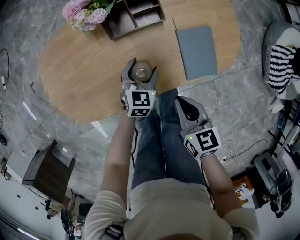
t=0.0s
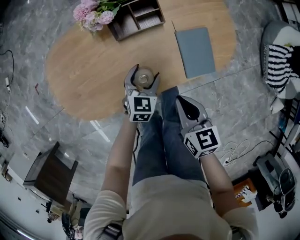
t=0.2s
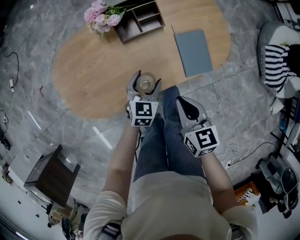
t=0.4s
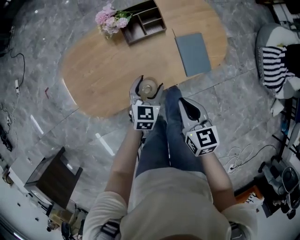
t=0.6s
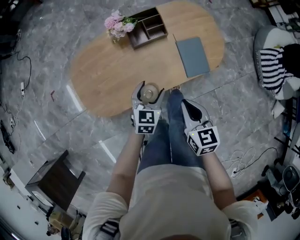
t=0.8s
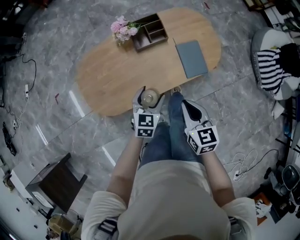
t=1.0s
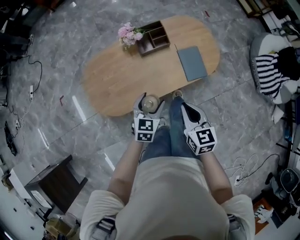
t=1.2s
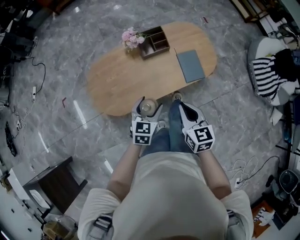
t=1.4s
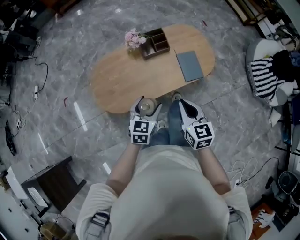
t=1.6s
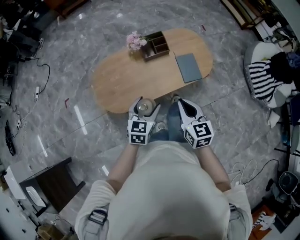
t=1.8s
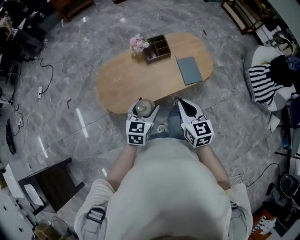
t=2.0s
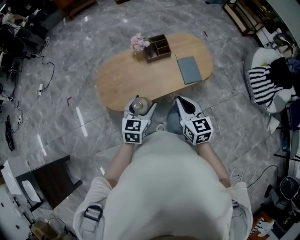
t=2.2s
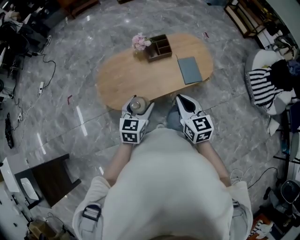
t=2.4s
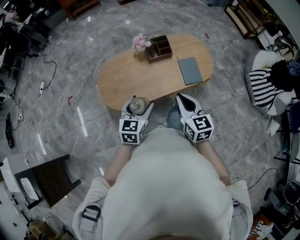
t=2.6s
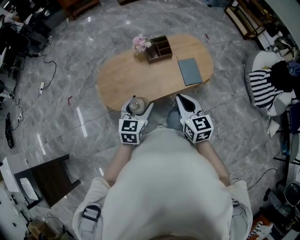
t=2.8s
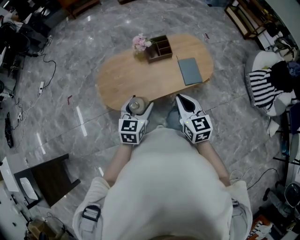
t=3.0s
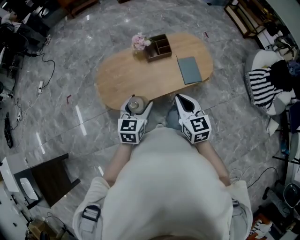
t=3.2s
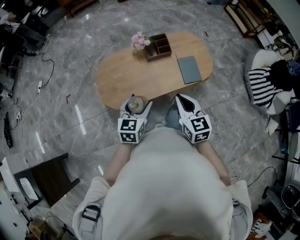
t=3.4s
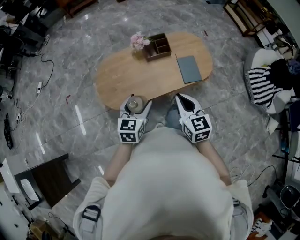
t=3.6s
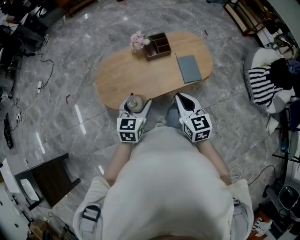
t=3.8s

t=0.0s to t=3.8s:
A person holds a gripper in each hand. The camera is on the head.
t=0.0s to t=1.2s: Both grippers move upward and backward, about 25 cm.
t=1.2s to t=2.6s: The grippers both shift upward and backward by about 15 cm.
t=2.6s to t=3.8s: The grippers stay close to where they were, moving slightly.

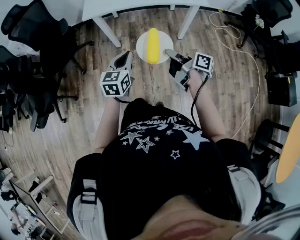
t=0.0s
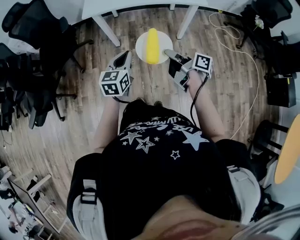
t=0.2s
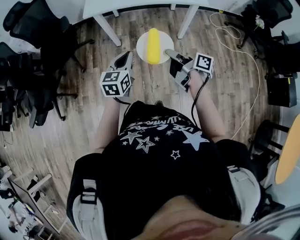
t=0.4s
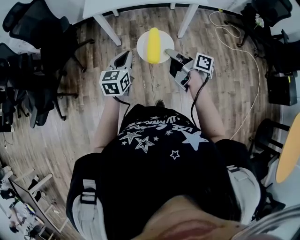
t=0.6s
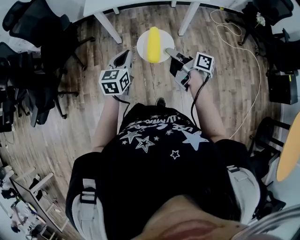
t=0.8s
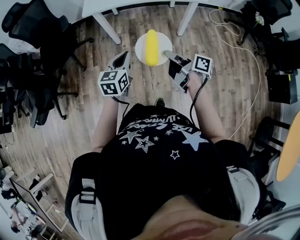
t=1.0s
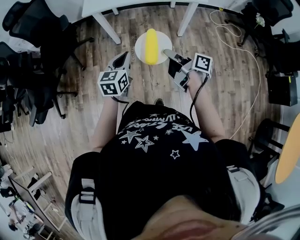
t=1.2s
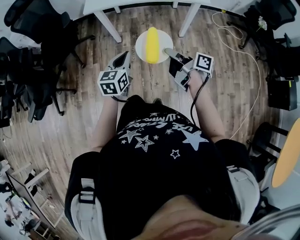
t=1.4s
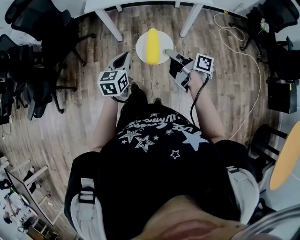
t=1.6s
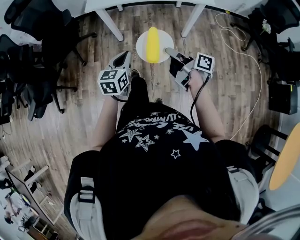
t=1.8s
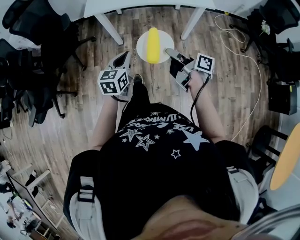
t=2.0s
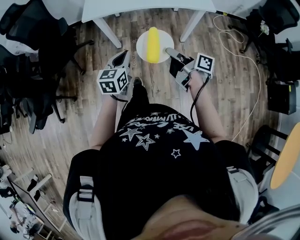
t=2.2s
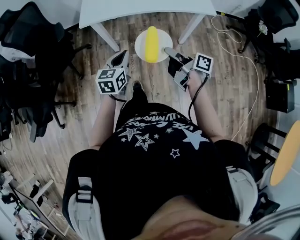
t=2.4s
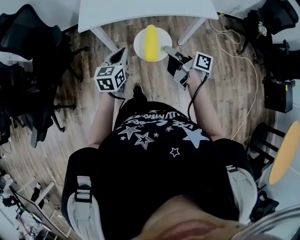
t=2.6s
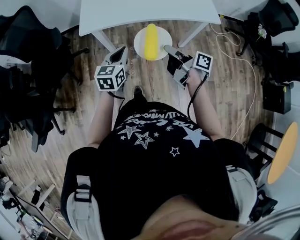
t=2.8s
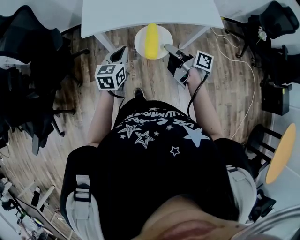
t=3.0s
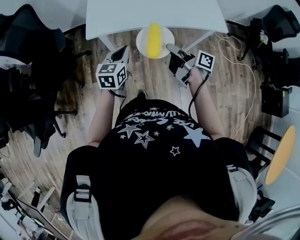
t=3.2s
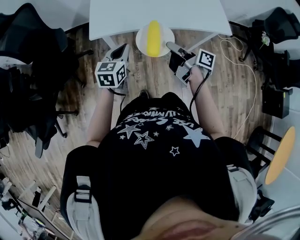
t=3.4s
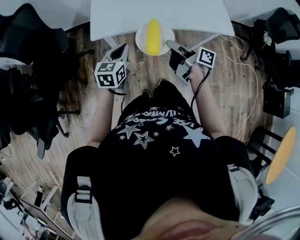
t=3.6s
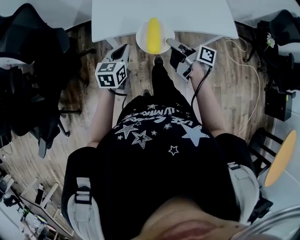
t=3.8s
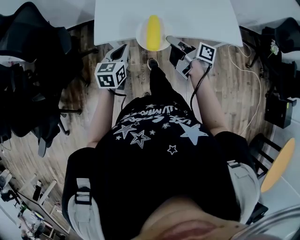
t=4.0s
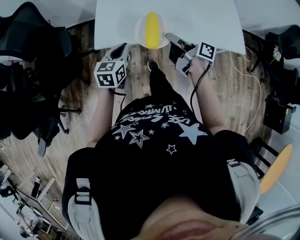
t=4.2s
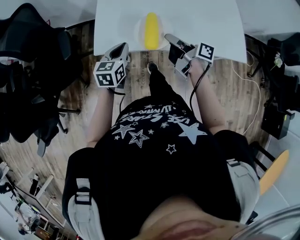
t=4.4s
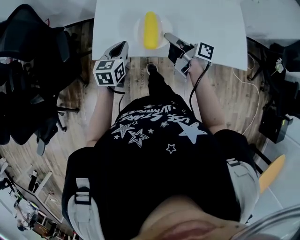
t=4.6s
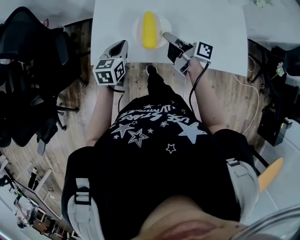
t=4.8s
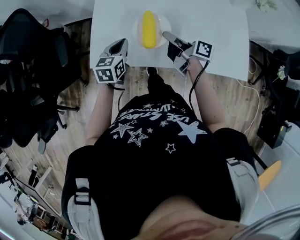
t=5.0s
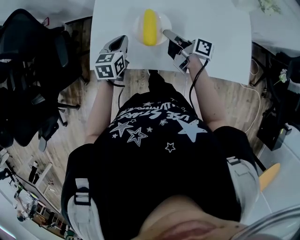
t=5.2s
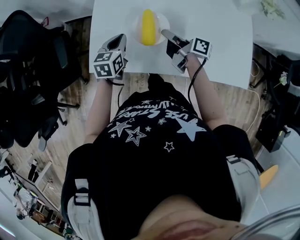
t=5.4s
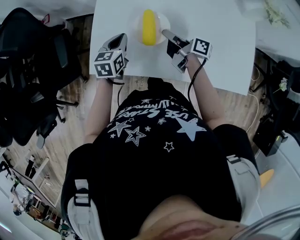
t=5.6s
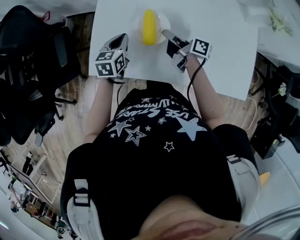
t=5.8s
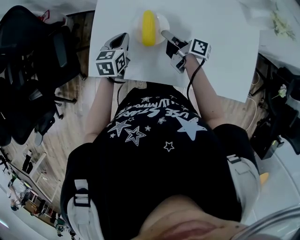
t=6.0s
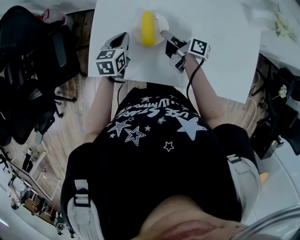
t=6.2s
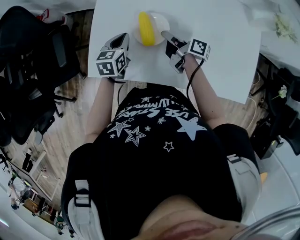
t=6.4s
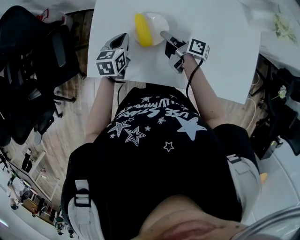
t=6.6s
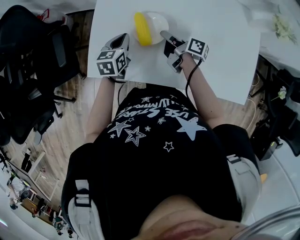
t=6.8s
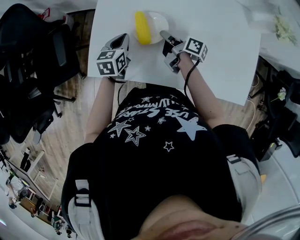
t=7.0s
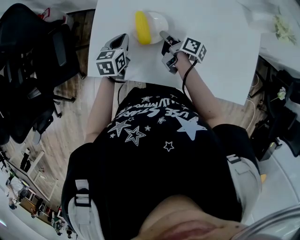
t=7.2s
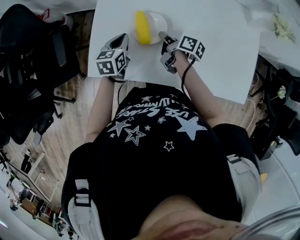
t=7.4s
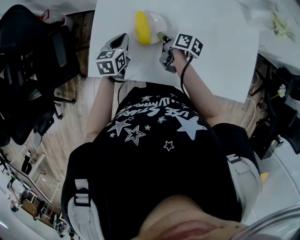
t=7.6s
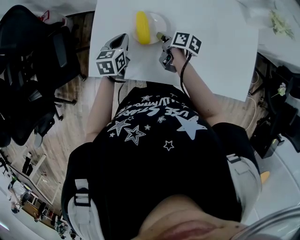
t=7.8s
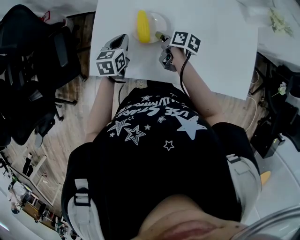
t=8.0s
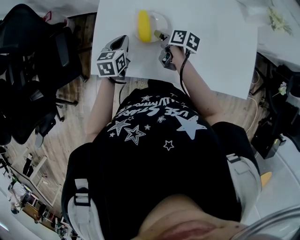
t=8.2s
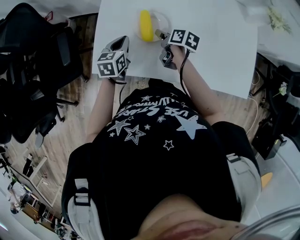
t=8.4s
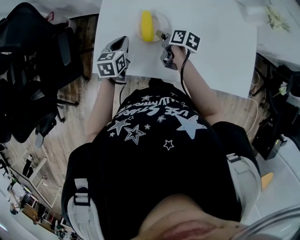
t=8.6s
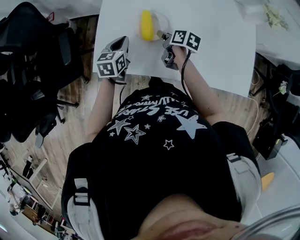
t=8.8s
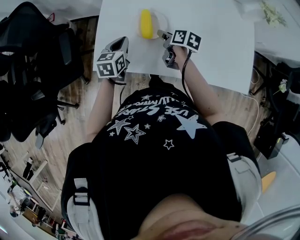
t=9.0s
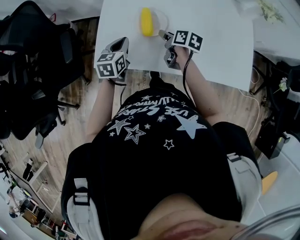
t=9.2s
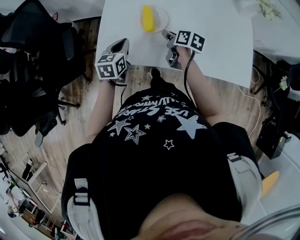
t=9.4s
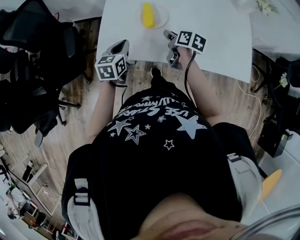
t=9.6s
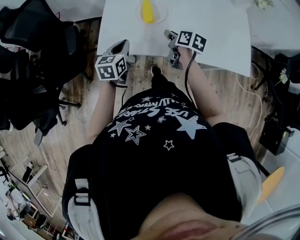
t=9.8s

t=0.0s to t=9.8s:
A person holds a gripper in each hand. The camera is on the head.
t=1.4s to t=2.8s: The left gripper ends up about 25 cm from where it was.
t=2.8s to t=4.2s: The left gripper moves about 25 cm.
t=4.2s to t=5.6s: The left gripper shifts by about 25 cm.
t=8.4s to t=9.8s: The left gripper changes place by about 15 cm.

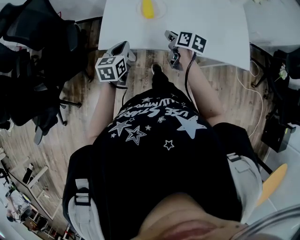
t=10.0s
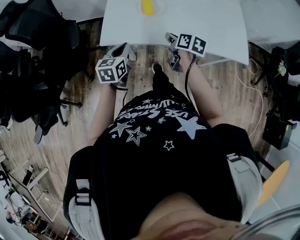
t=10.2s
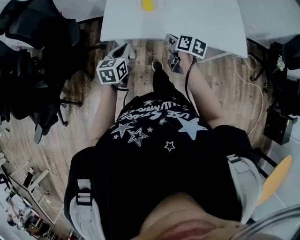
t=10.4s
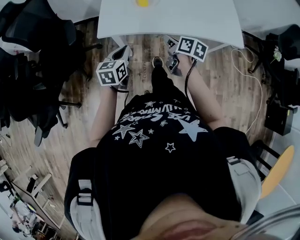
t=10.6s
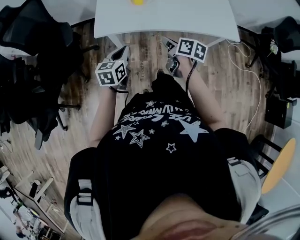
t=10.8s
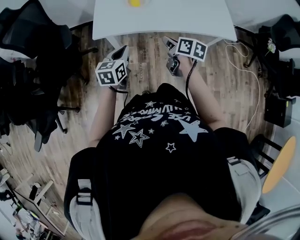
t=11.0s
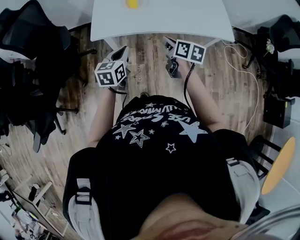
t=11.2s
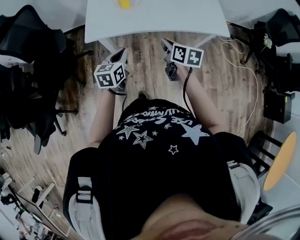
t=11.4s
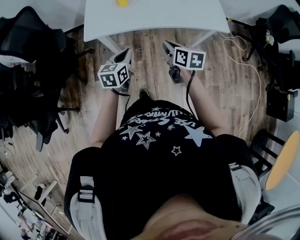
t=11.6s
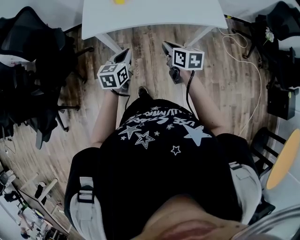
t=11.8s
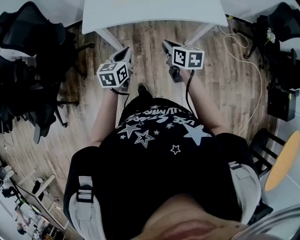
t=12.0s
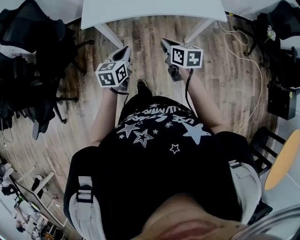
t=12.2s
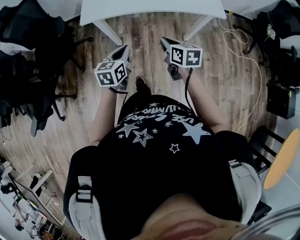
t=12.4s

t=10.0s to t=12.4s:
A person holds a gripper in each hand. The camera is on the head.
t=10.0s to t=11.2s: The left gripper ends up roughly 15 cm from where it was.
t=11.2s to t=12.4s: The left gripper shifts by about 15 cm.

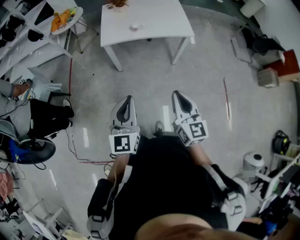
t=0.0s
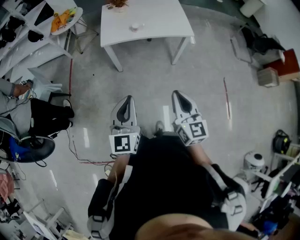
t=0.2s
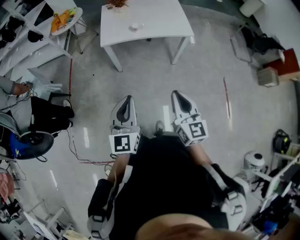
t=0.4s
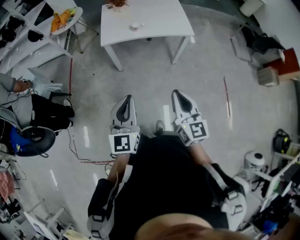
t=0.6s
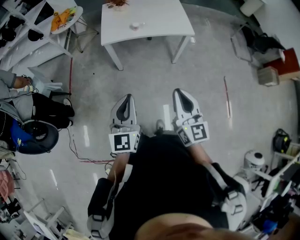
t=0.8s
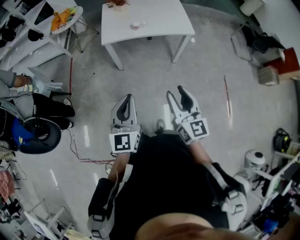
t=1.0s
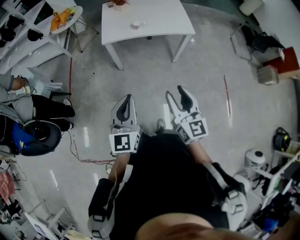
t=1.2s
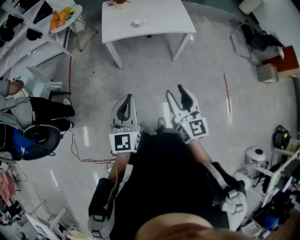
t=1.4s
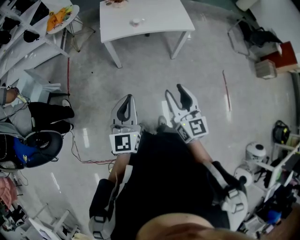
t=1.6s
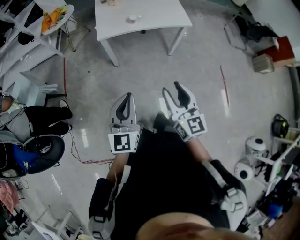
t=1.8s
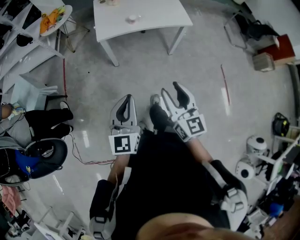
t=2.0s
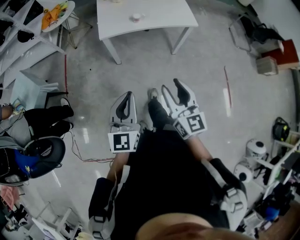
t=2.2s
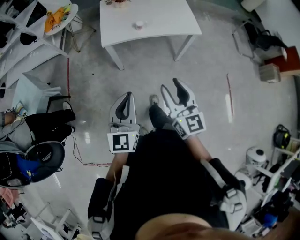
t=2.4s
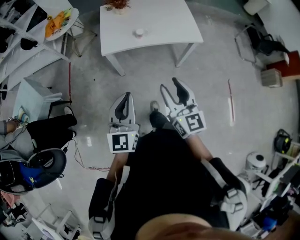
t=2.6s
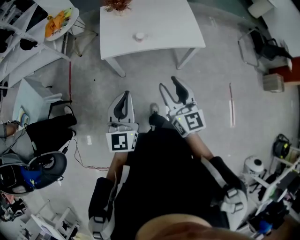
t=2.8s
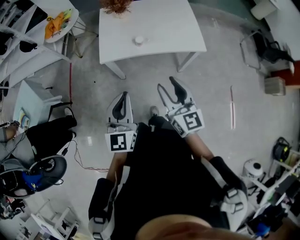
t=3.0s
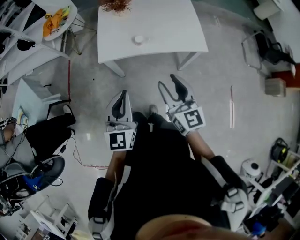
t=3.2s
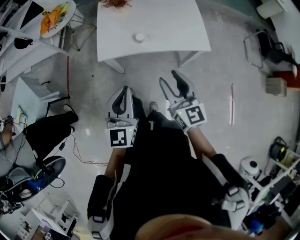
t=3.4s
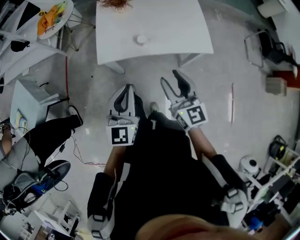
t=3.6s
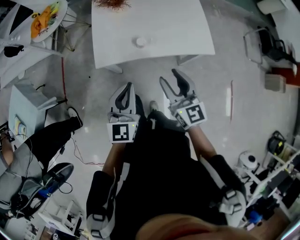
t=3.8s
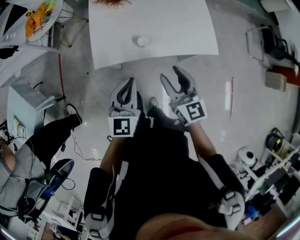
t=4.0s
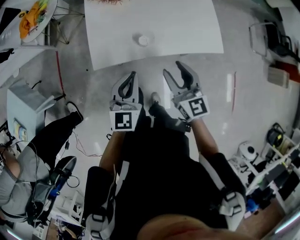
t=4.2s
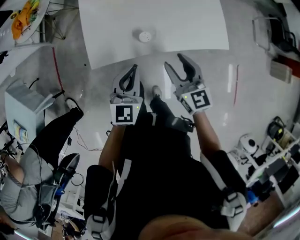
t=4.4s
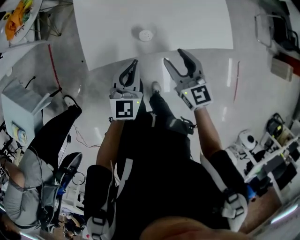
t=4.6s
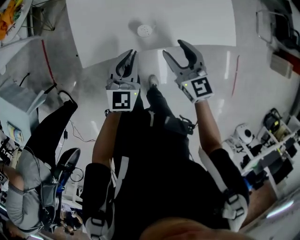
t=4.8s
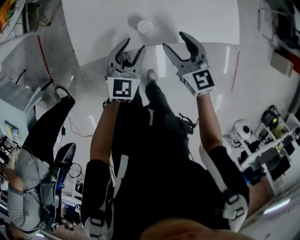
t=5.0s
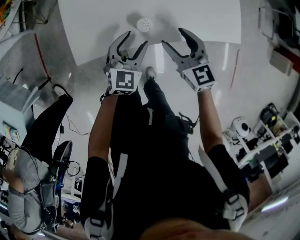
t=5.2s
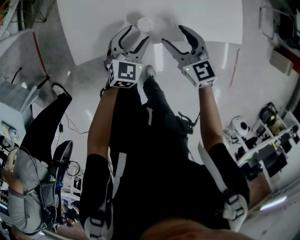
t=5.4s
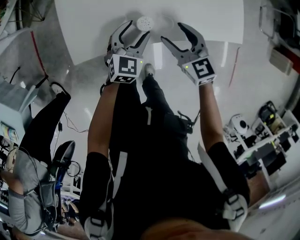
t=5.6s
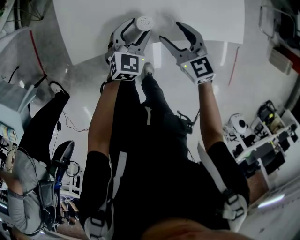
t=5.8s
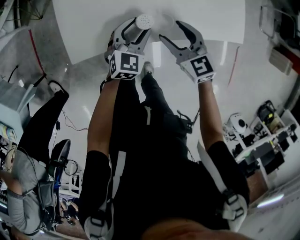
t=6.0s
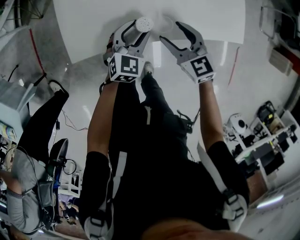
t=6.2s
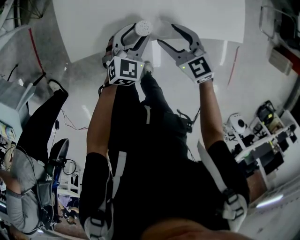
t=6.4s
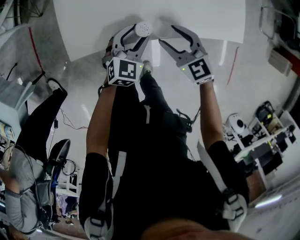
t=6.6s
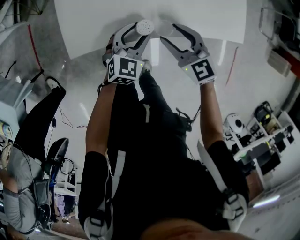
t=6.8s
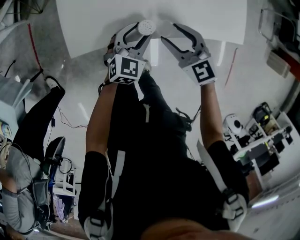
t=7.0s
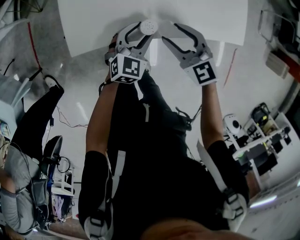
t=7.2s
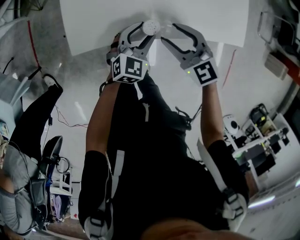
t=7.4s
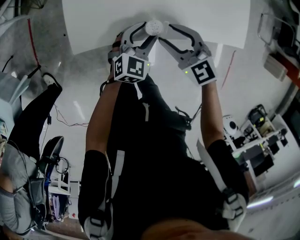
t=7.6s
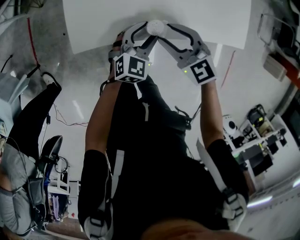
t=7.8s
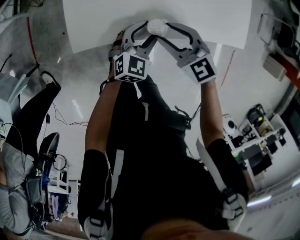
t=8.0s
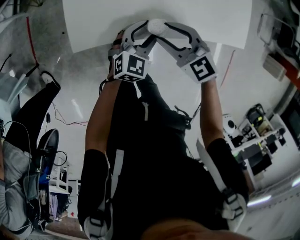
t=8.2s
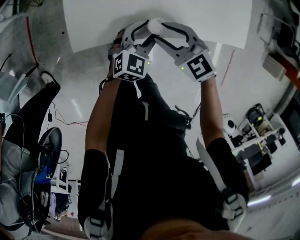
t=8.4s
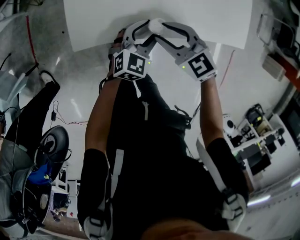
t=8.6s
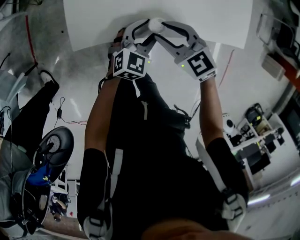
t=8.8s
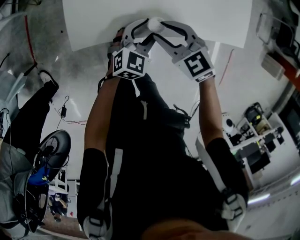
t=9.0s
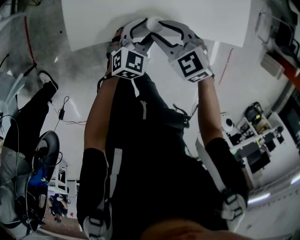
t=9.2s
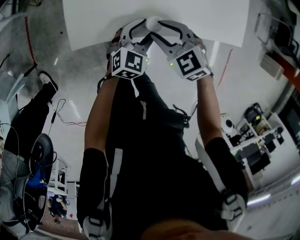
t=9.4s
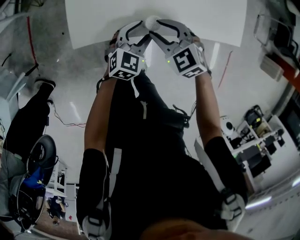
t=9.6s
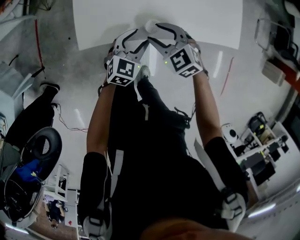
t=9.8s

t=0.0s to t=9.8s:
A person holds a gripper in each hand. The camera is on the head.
t=0.0s to t=1.4s: The right gripper ends up some 5 cm from where it was, and opens its fingers.
t=1.4s to t=2.8s: Both grippers travel together forward, some 25 cm.
t=2.8s to t=4.2s: Both grippers travel together forward and downward, about 30 cm.
t=4.2s to t=5.6s: The two grippers go some 25 cm downward and forward. The left gripper turns by approximately 20 degrees, and opens its fingers, while the right gripper rotates some 20 degrees.
t=5.6s to t=7.0s: The grippers move only a little.
t=7.0s to t=8.4s: The grippers make only small movements.
t=8.4s to t=9.8s: The left gripper shifts by about 5 cm.
